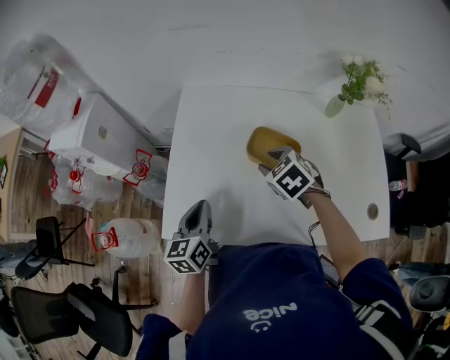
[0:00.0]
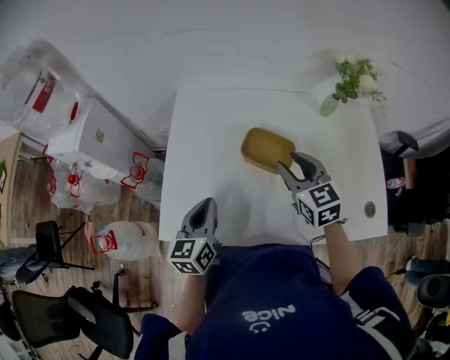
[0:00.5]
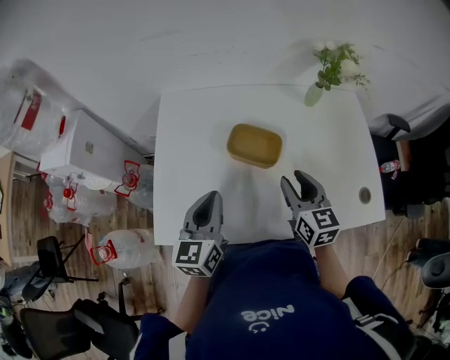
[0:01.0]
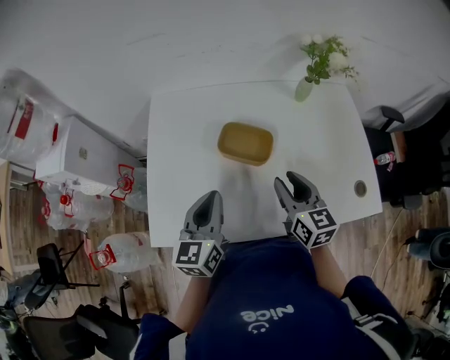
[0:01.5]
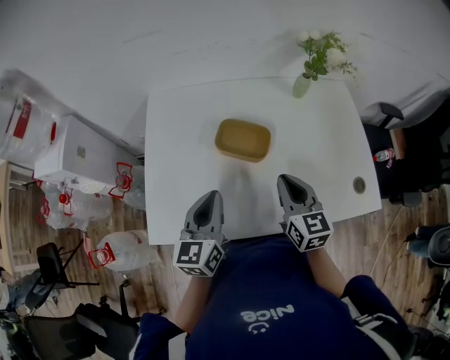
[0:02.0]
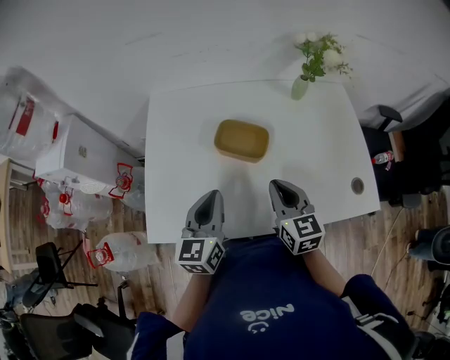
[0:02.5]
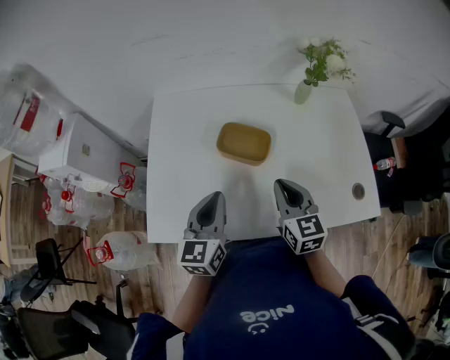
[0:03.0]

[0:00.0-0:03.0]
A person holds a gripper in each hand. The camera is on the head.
0:00.0 to 0:01.5: The right gripper goes about 15 cm to the right and backward, and tilts its fingers roughly 40 degrees upward. The left gripper shifts some 15 cm to the right and upward.
0:01.5 to 0:03.0: The right gripper closes up.

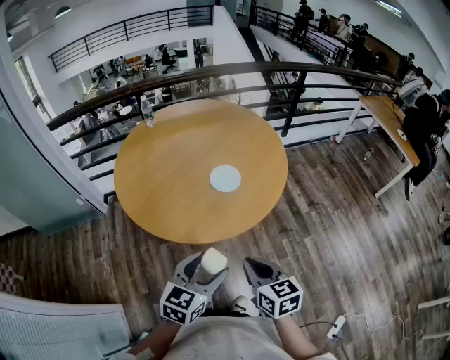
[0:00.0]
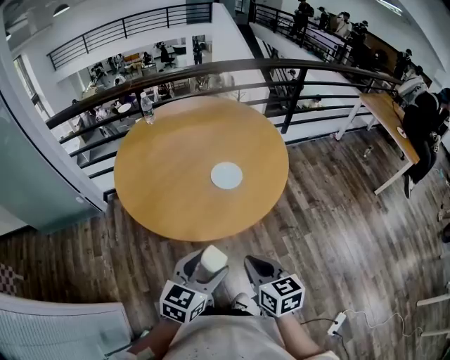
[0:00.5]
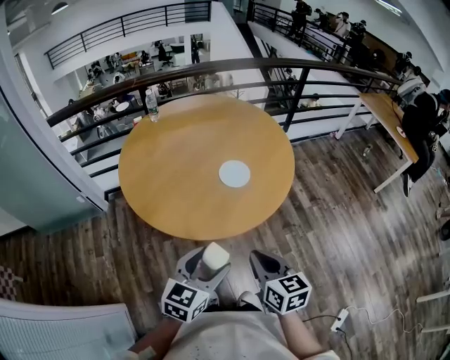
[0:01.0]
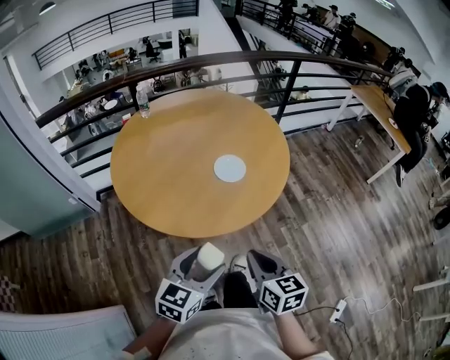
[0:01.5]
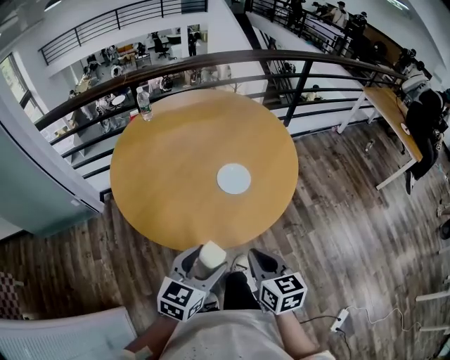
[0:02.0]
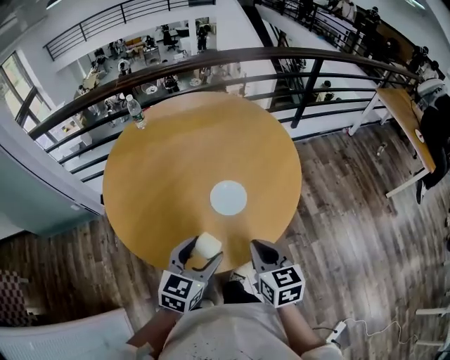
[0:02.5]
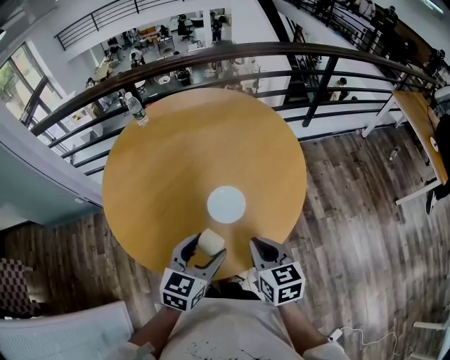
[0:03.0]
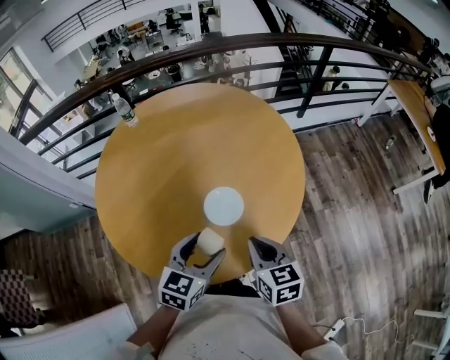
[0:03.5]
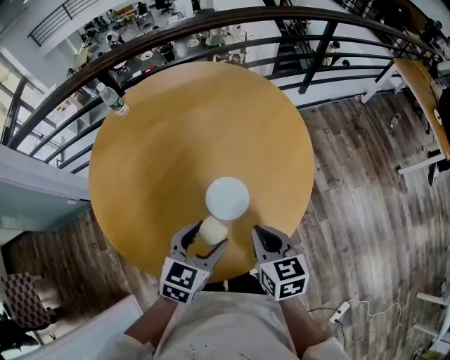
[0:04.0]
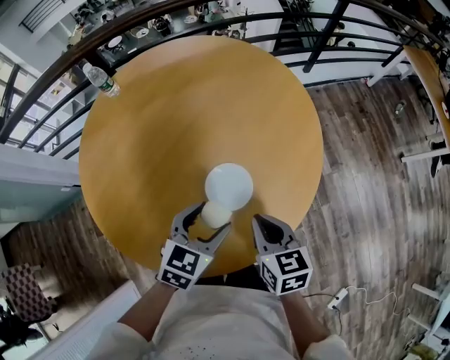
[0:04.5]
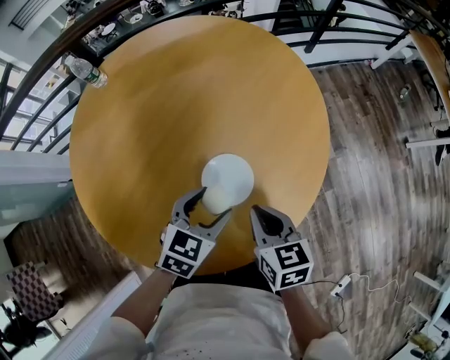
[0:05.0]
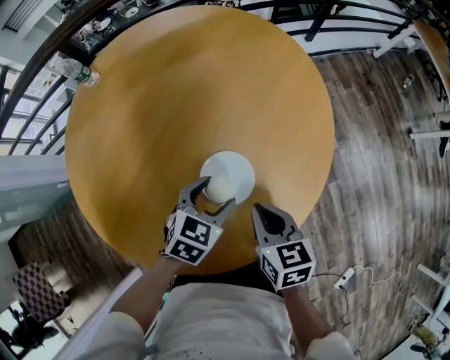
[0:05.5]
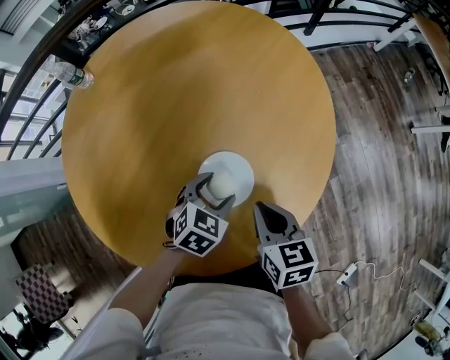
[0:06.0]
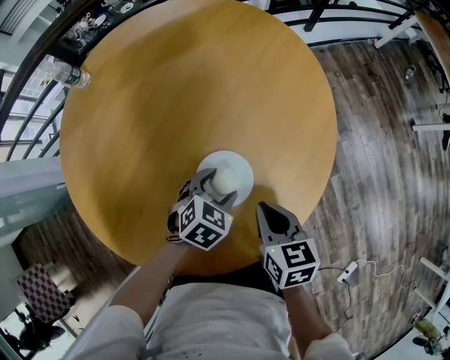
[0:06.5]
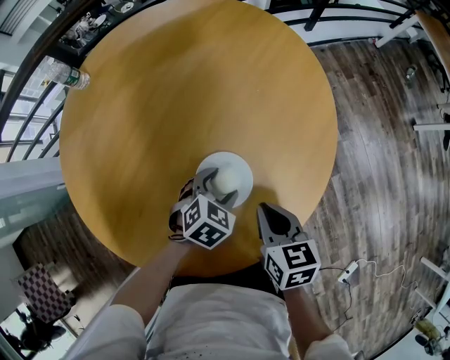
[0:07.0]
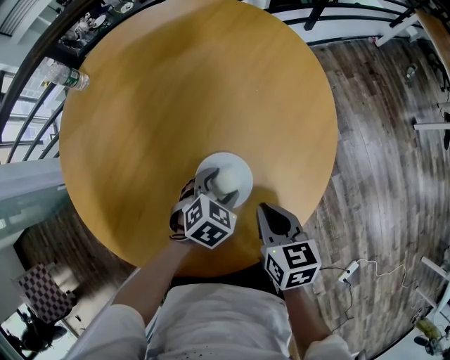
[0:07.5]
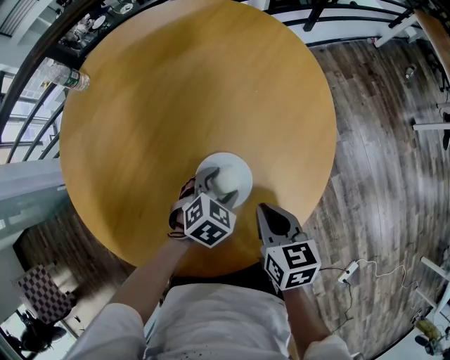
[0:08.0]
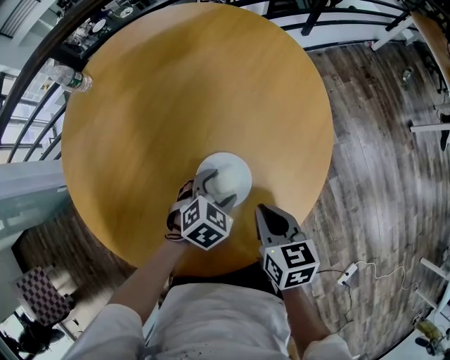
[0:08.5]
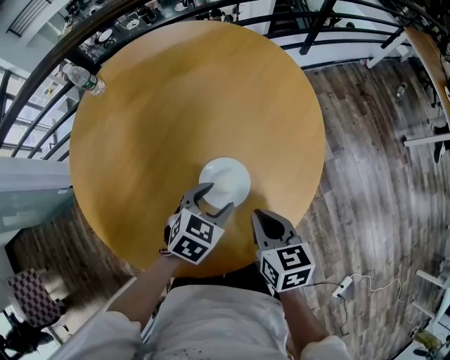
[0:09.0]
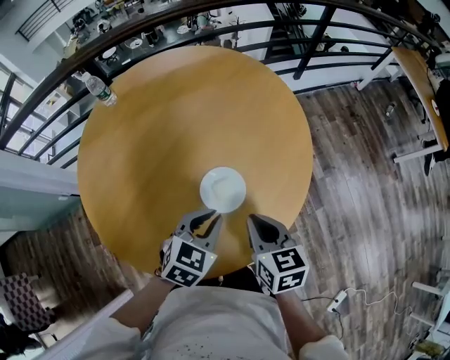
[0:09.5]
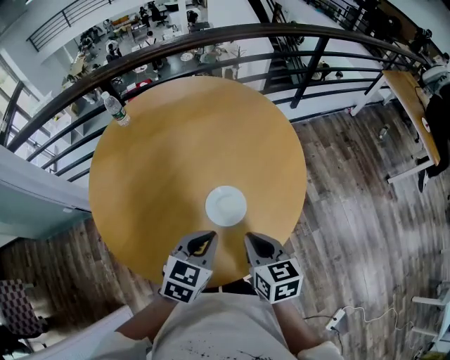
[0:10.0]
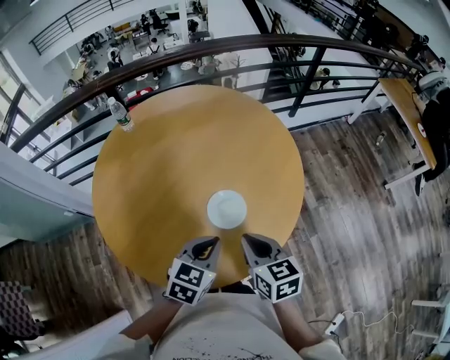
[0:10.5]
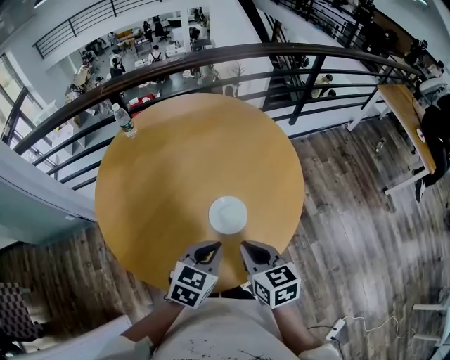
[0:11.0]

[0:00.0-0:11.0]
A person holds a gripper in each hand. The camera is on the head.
0:00.0 to 0:02.0: The left gripper travels forward and to the left by roughly 10 cm; the right gripper is displaced forward by some 10 cm.
0:02.0 to 0:03.5: Both grippers move forward, roughly 20 cm.
0:03.5 to 0:05.5: Both grippers move downward and forward, about 20 cm. The left gripper turns by roughly 20 degrees.
0:05.5 to 0:07.5: The left gripper is displaced downward by approximately 5 cm.
0:07.5 to 0:09.0: The right gripper moves about 5 cm. Meanwhile the left gripper goes about 10 cm upward.
0:09.0 to 0:11.0: The two grippers go about 15 cm upward and backward. The left gripper closes up.

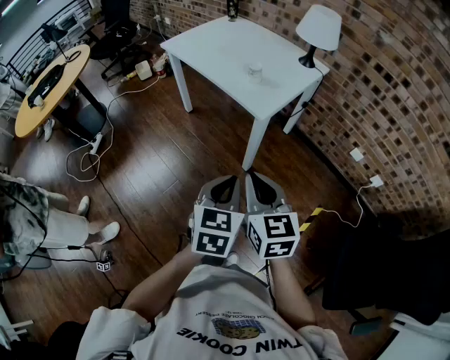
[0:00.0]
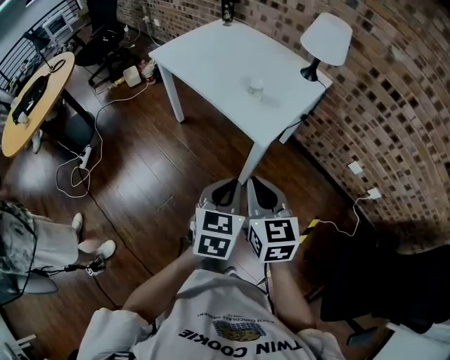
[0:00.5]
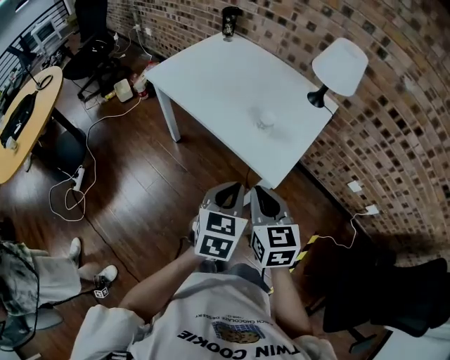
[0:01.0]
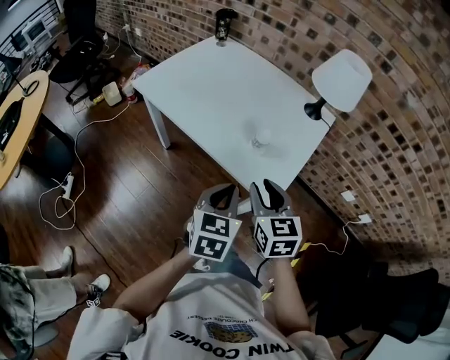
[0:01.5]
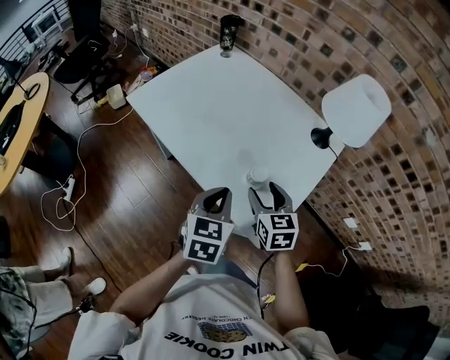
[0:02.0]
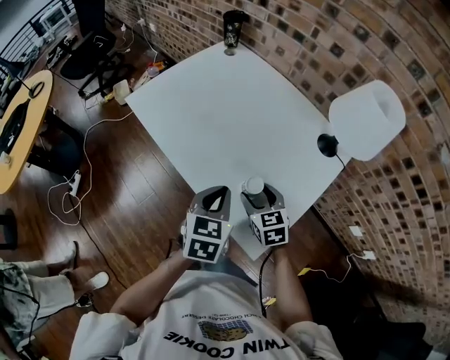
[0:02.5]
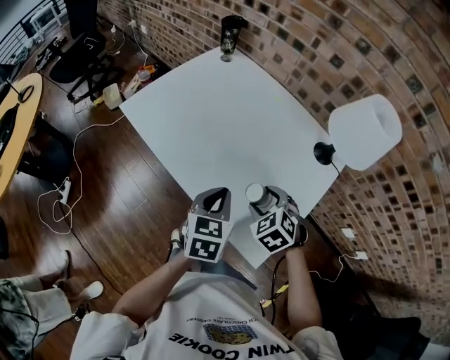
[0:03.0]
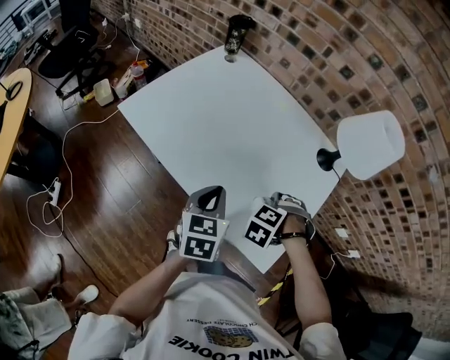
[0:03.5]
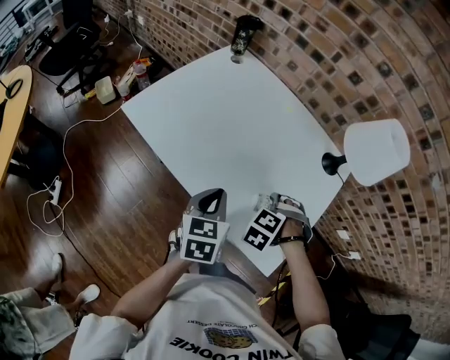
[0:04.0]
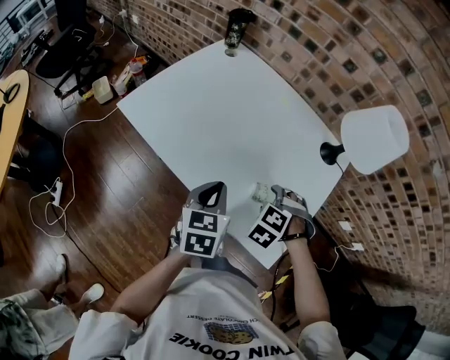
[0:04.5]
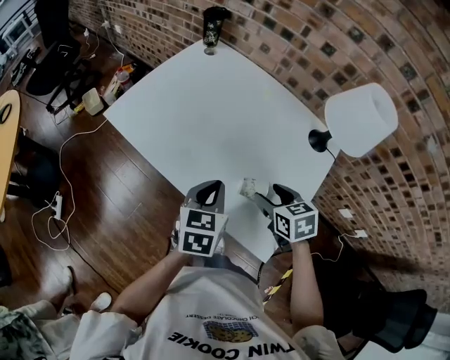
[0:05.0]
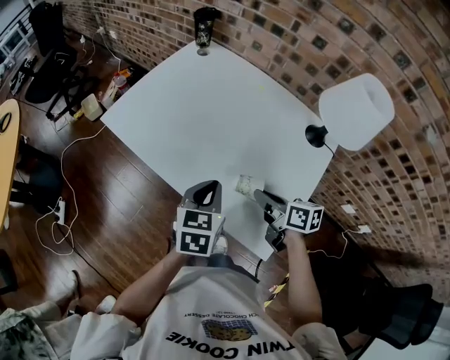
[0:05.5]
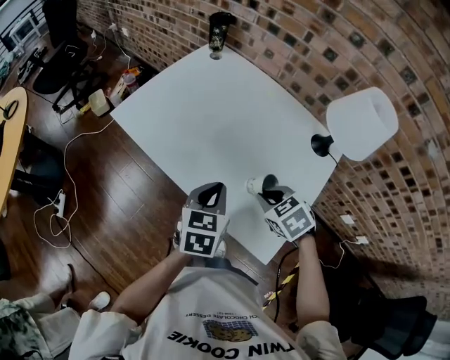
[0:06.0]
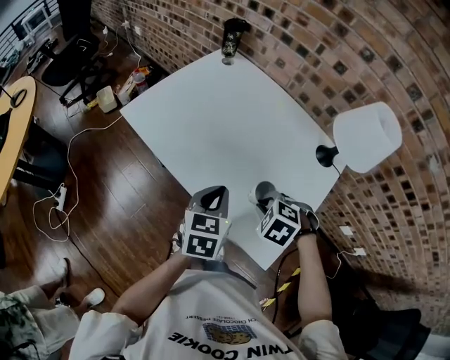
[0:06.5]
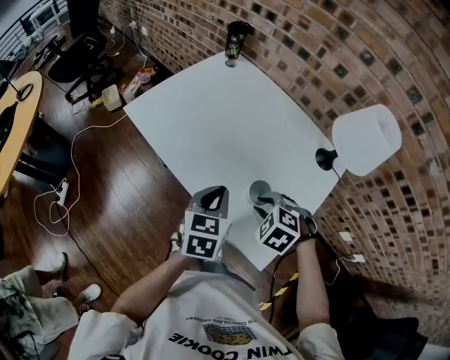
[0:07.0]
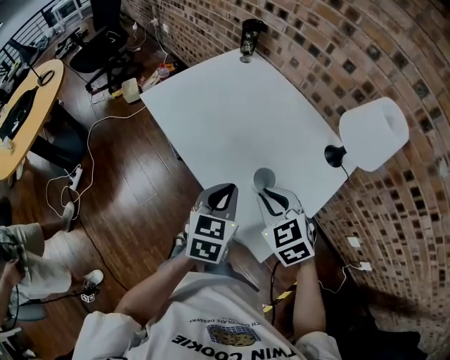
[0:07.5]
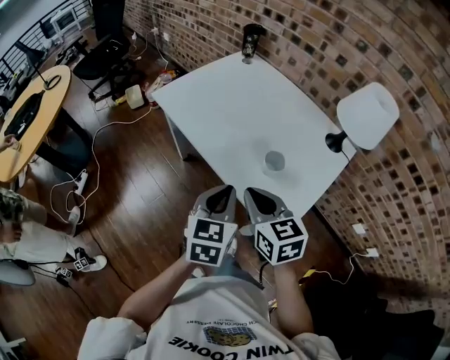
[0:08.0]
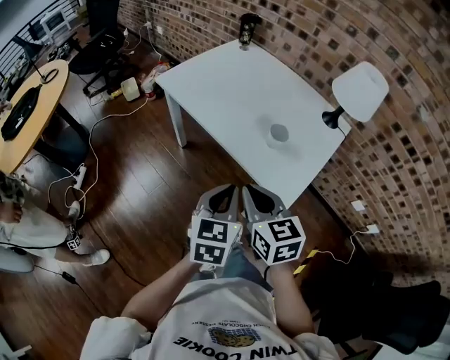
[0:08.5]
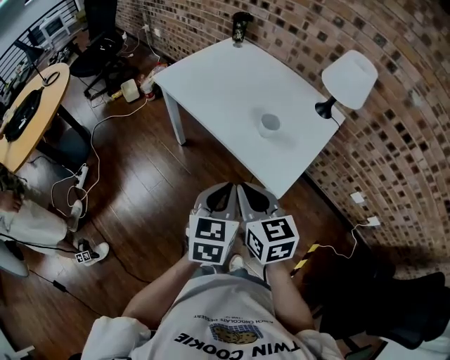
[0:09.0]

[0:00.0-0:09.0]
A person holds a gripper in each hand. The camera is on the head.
0:00.0 to 0:02.0: The pair of grippers is taken forward, roughly 50 cm. The right gripper opens.
0:02.0 to 0:04.5: The left gripper changes place by about 15 cm, while the right gripper shifts roughly 5 cm downward, and points its fingers approximately 40 degrees further downward.
0:04.5 to 0:07.0: The right gripper moves roughly 5 cm, swivels roughly 20 degrees, and closes.
0:07.0 to 0:09.0: The right gripper heads backward, upward and to the left, covering about 30 cm, and points its fingers some 50 degrees further upward. Meanwhile the left gripper goes about 25 cm backward.

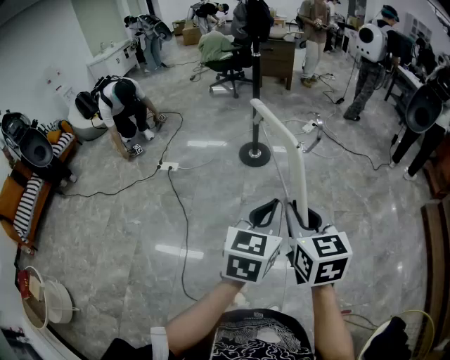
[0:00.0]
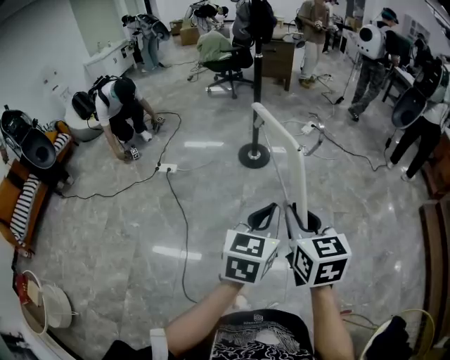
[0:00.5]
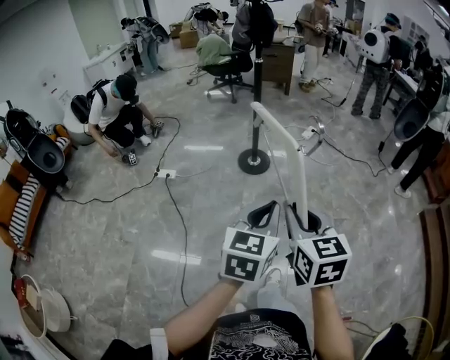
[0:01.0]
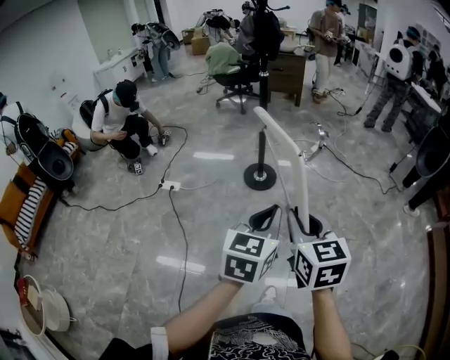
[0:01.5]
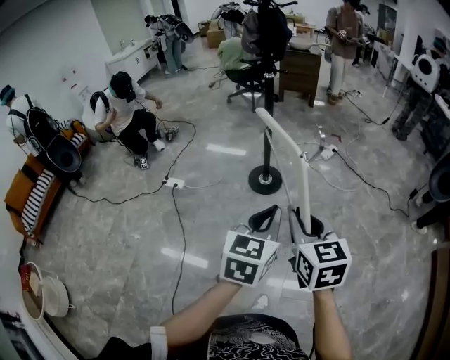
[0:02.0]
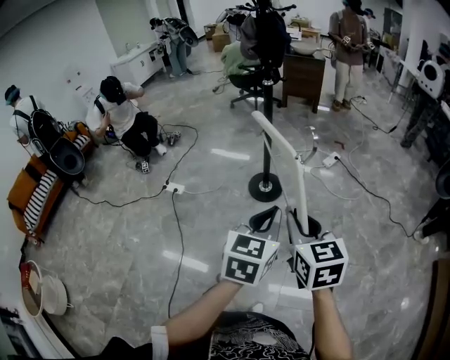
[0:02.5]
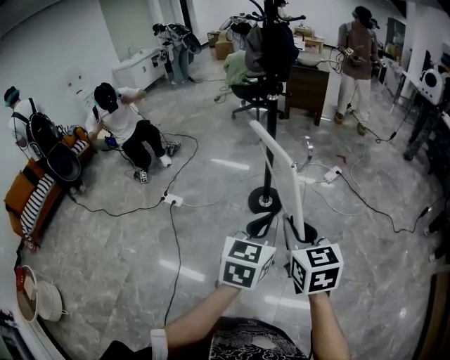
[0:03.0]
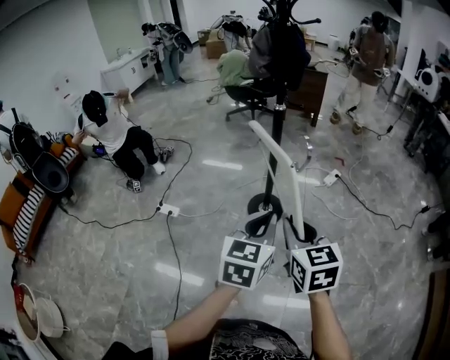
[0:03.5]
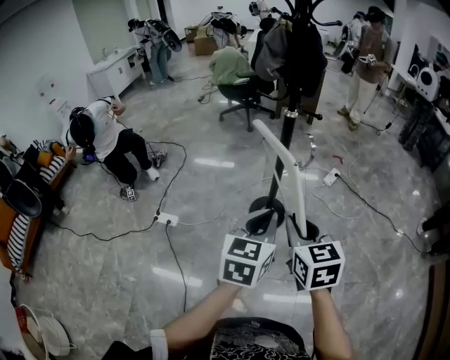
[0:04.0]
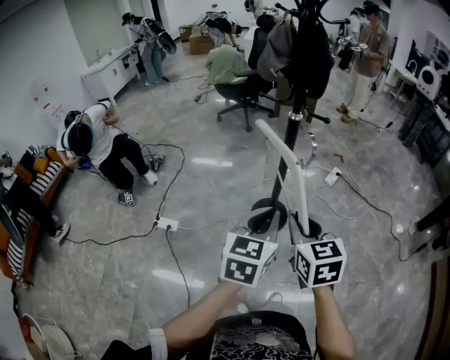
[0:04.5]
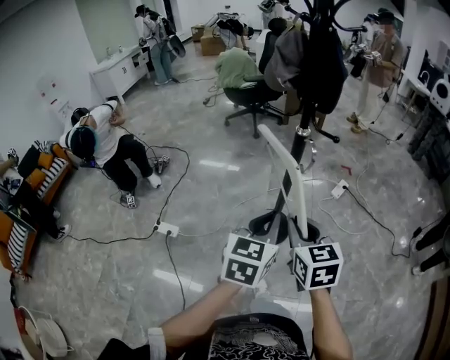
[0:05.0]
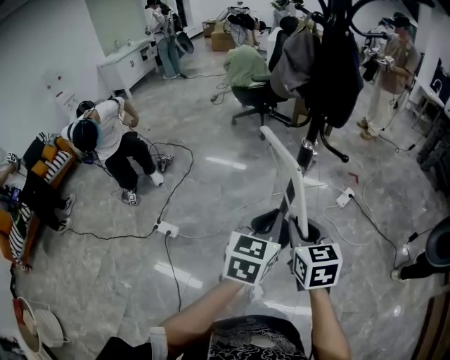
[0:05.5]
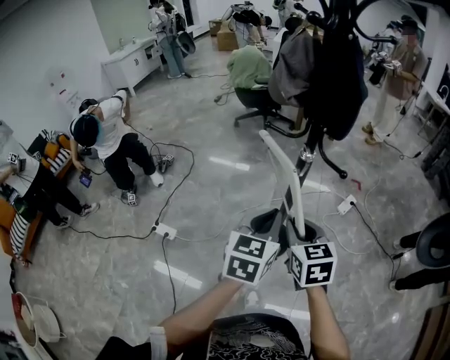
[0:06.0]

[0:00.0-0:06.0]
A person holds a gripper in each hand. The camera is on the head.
0:00.0 to 0:02.0: The grippers both shift forward by roughly 25 cm.
0:02.0 to 0:04.0: The grippers both shift forward and to the left by roughly 35 cm.
0:04.0 to 0:06.0: The two grippers go approximately 25 cm forward.
